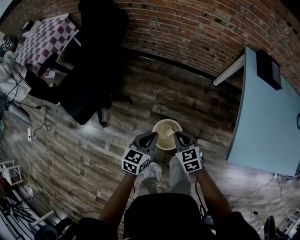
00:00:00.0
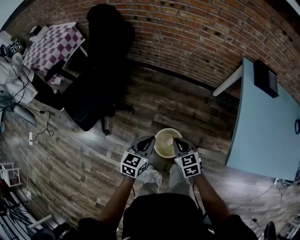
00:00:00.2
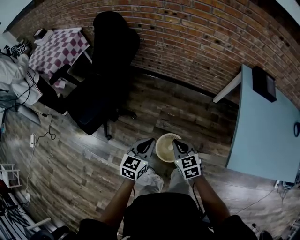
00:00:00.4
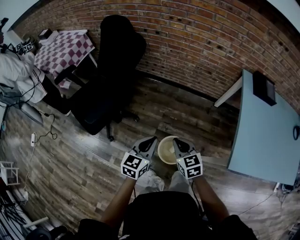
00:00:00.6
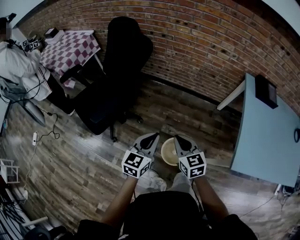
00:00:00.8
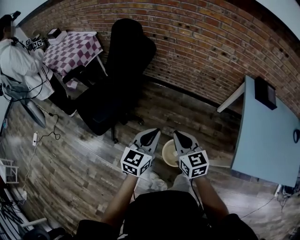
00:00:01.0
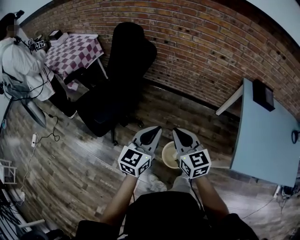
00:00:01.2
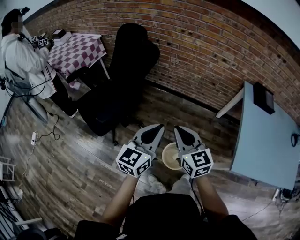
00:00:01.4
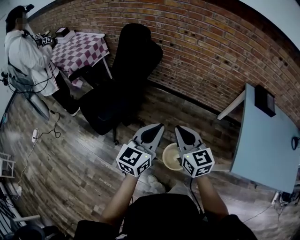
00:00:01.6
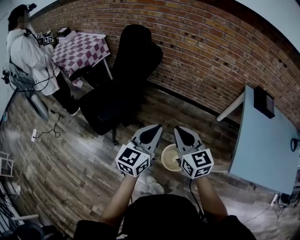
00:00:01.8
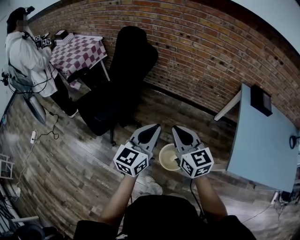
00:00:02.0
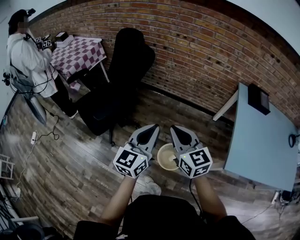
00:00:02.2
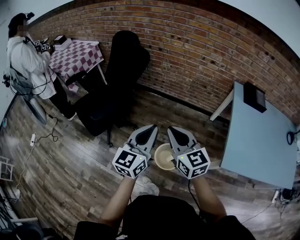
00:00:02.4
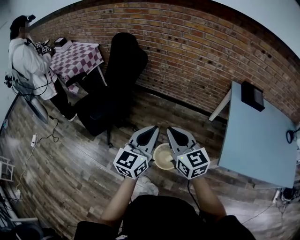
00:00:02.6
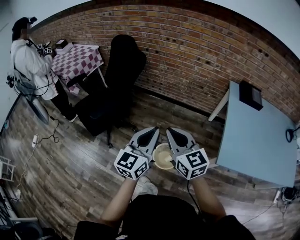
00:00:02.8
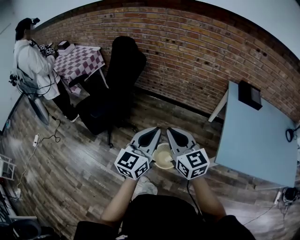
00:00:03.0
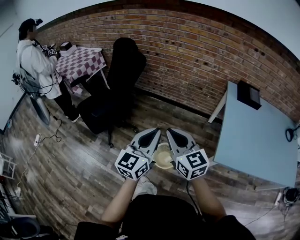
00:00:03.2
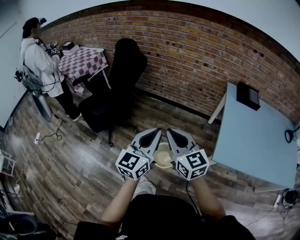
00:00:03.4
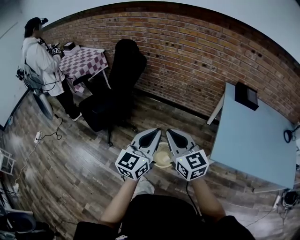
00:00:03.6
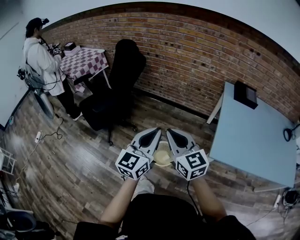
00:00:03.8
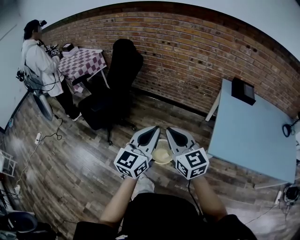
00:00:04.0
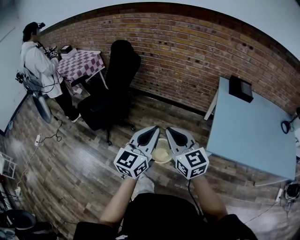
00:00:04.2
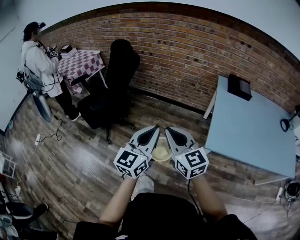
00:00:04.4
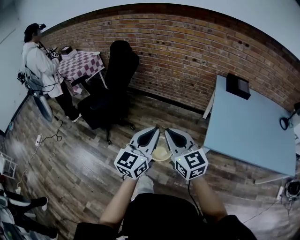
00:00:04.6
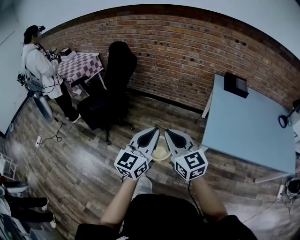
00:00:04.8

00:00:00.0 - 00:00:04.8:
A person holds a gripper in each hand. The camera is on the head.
00:00:00.0 - 00:00:01.6: Both grippers move upward and to the left, approximately 30 cm. The right gripper tilts its fingers some 30 degrees upward; the left gripper swivels about 30 degrees.
00:00:01.6 - 00:00:03.2: The right gripper travels backward, to the right and upward by some 20 cm; the left gripper travels backward and to the right by roughly 20 cm.
00:00:03.2 - 00:00:04.8: Both grippers move backward and to the right, about 15 cm.

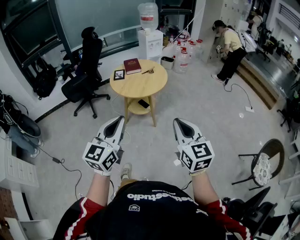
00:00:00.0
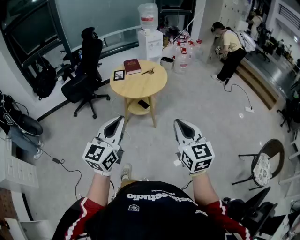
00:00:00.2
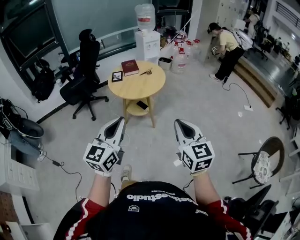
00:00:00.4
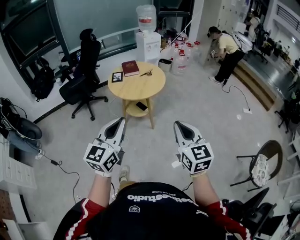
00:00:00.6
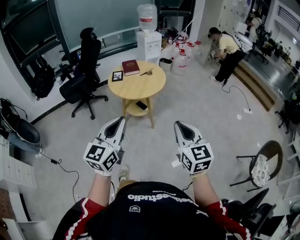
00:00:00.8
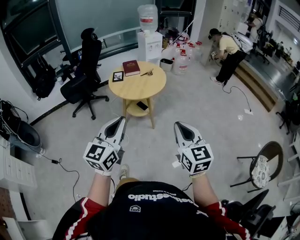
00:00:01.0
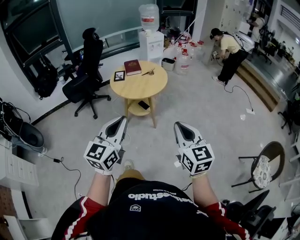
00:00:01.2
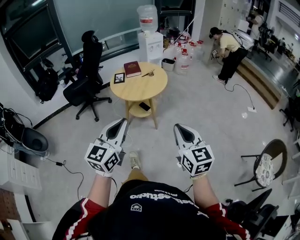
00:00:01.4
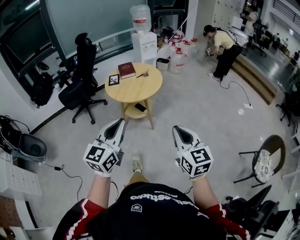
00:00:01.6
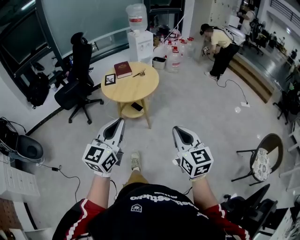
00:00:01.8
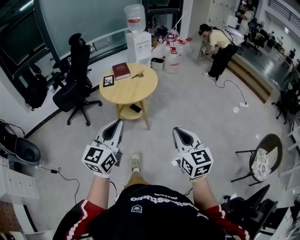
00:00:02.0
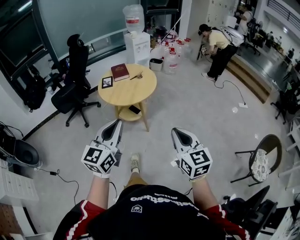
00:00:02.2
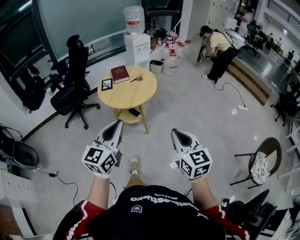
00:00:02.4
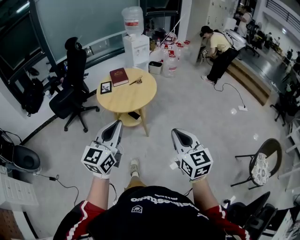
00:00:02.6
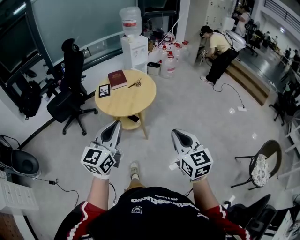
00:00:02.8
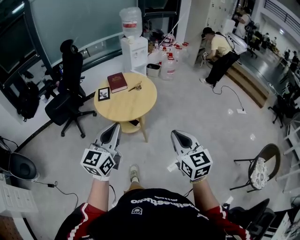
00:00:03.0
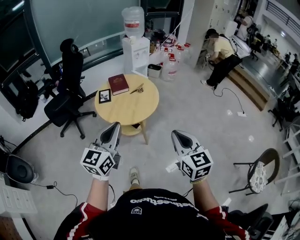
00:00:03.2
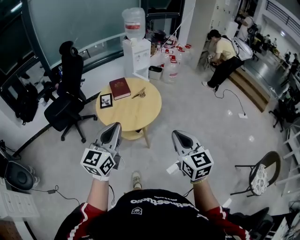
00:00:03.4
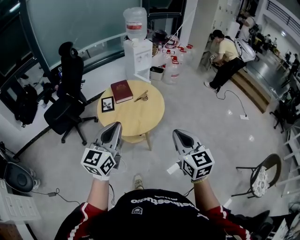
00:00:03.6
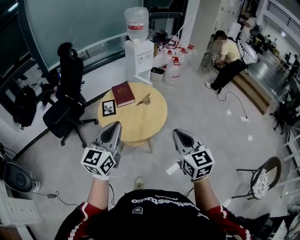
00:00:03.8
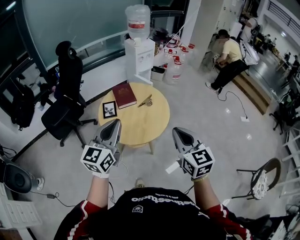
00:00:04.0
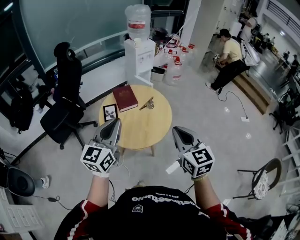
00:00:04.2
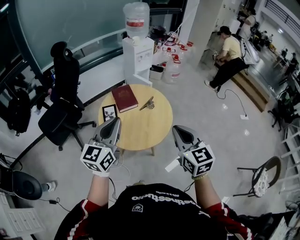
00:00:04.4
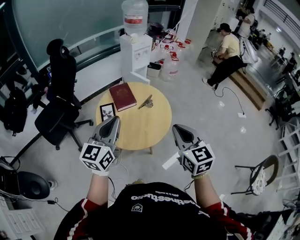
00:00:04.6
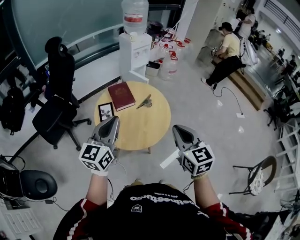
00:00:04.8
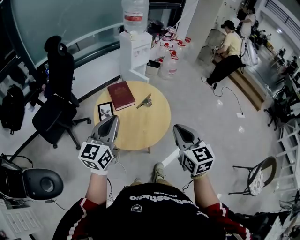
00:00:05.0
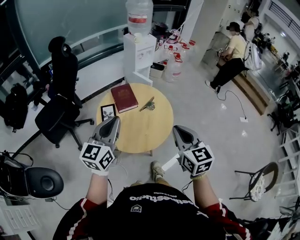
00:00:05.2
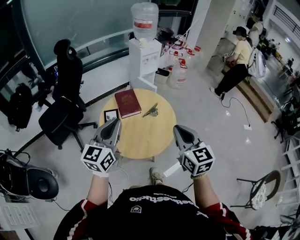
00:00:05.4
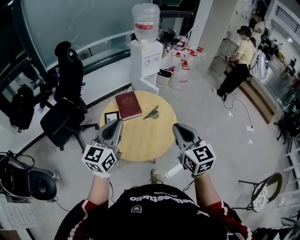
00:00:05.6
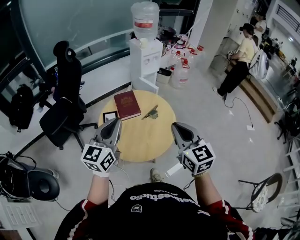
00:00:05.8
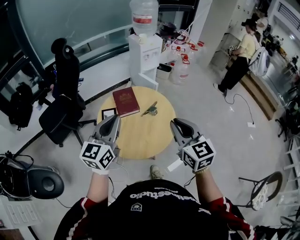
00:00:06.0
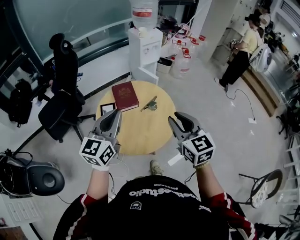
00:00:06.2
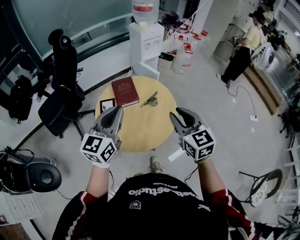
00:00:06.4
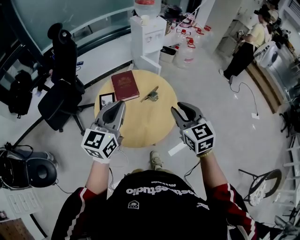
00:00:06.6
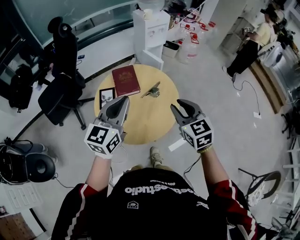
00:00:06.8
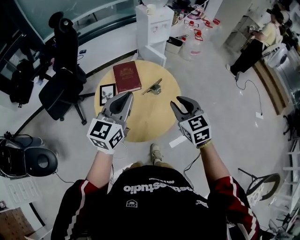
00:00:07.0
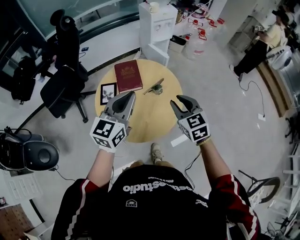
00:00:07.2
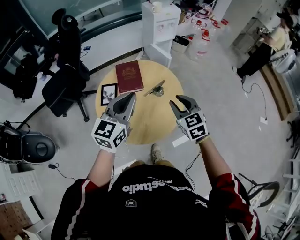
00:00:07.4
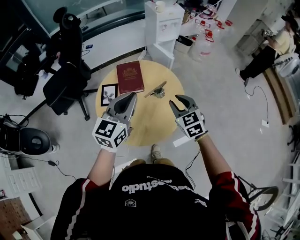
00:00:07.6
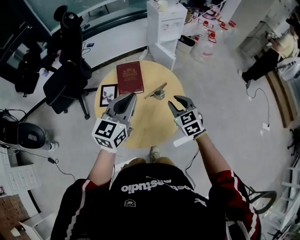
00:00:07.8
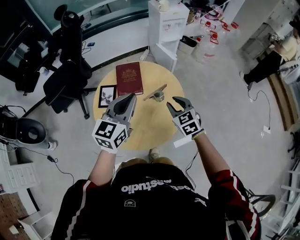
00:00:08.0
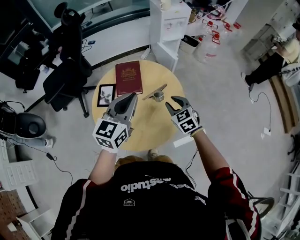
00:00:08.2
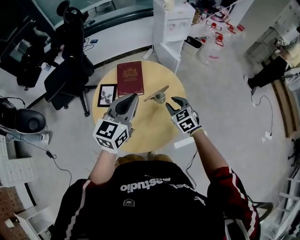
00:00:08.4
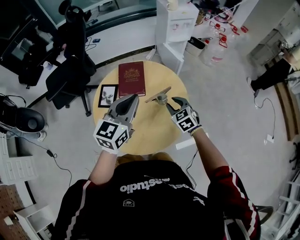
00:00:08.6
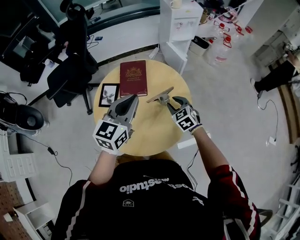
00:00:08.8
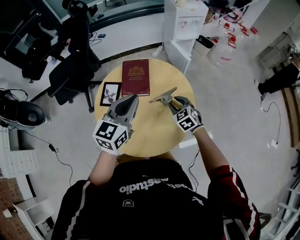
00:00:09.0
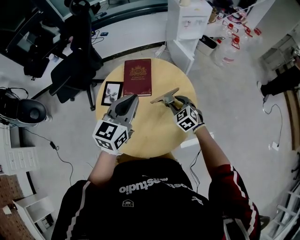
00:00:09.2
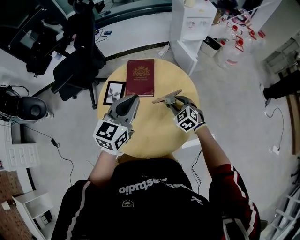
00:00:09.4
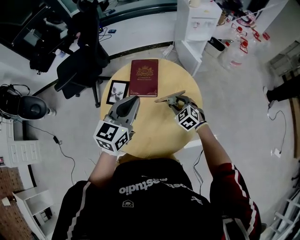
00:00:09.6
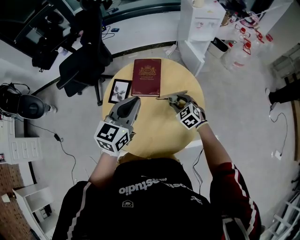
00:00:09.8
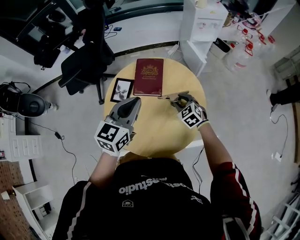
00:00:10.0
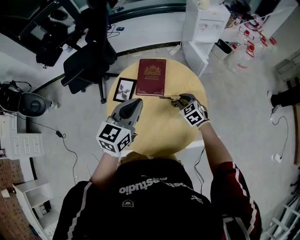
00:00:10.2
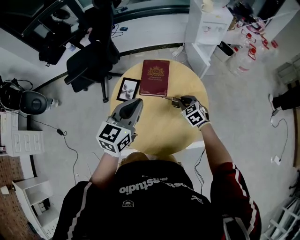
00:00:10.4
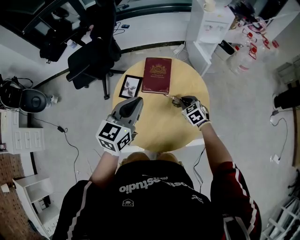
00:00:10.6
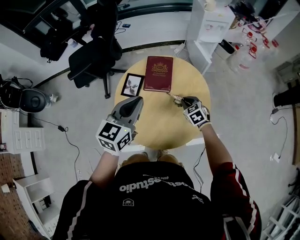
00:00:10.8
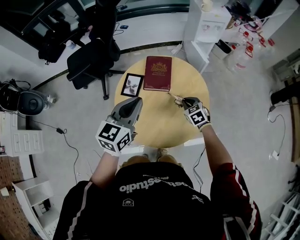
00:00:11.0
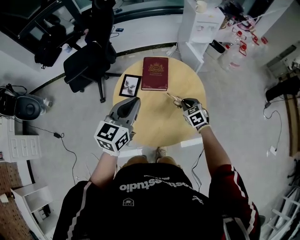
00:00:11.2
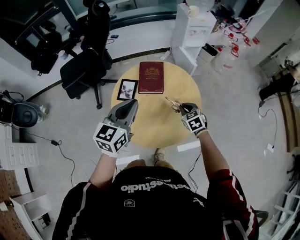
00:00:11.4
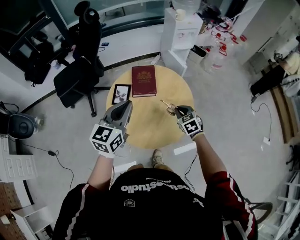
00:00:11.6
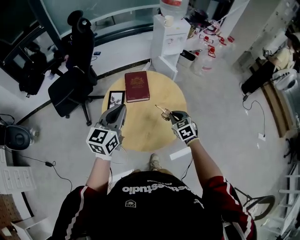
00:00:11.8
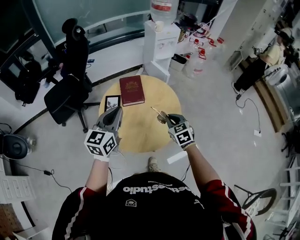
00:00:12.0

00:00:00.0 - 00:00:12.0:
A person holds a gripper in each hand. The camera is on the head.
00:00:00.0 - 00:00:01.6: The grippers move only a little.
00:00:01.6 - 00:00:03.0: The grippers both shift forward by approximately 15 cm.
00:00:03.0 - 00:00:04.4: Both grippers travel together forward and to the left, approximately 35 cm.
00:00:04.4 - 00:00:06.0: Both grippers move forward, roughly 10 cm.
00:00:06.0 - 00:00:07.6: The right gripper shifts about 25 cm downward and forward, and rotates some 20 degrees. The left gripper travels forward, to the right and downward by approximately 15 cm.
00:00:07.6 - 00:00:09.0: The left gripper goes about 10 cm downward and forward. Meanwhile the right gripper moves downward and forward, some 20 cm.
00:00:09.0 - 00:00:10.4: The left gripper shifts approximately 5 cm to the left; the right gripper changes place by about 5 cm, and closes.
00:00:10.4 - 00:00:12.0: The right gripper moves backward and upward, roughly 25 cm, and turns by some 30 degrees, while the left gripper is displaced backward, upward and to the left by roughly 15 cm.

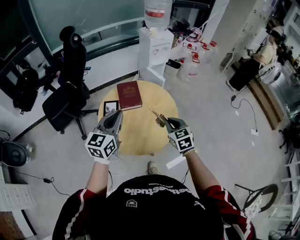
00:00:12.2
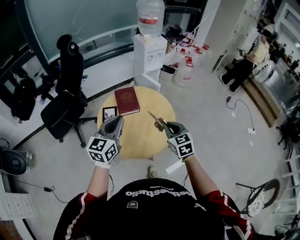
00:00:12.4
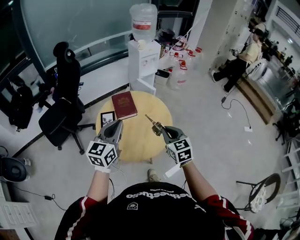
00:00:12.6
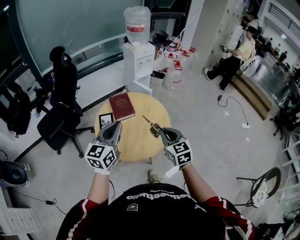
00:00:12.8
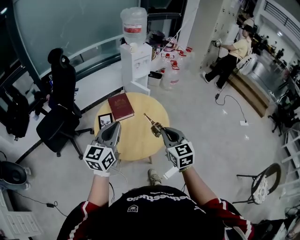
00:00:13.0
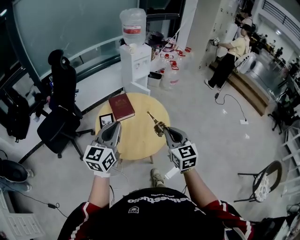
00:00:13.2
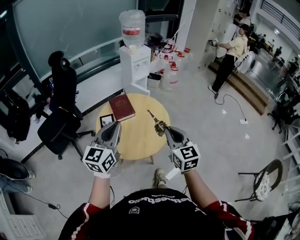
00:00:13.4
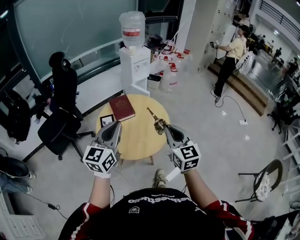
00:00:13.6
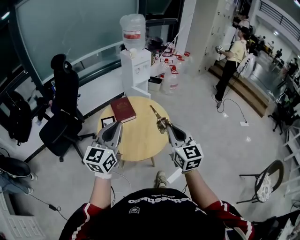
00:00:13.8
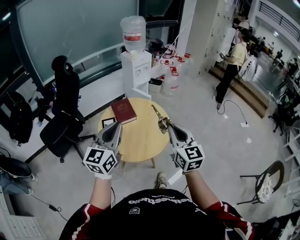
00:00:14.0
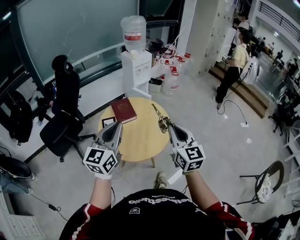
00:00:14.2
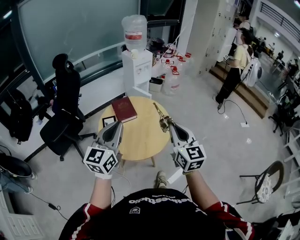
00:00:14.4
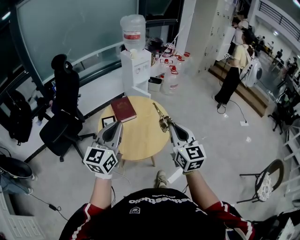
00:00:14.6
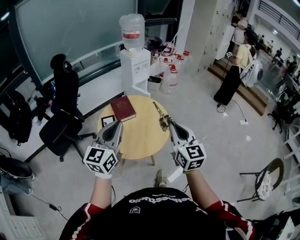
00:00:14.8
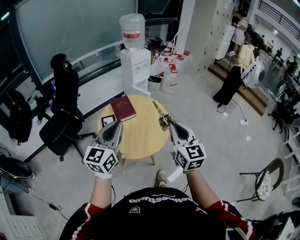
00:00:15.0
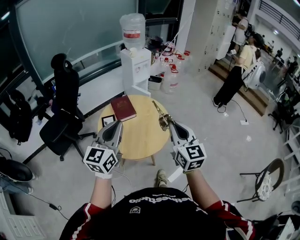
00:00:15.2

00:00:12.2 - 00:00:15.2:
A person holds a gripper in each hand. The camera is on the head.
00:00:12.2 - 00:00:13.8: The right gripper heads upward and backward, covering about 25 cm, and turns by approximately 30 degrees; the left gripper travels backward and upward by roughly 15 cm.
00:00:13.8 - 00:00:15.2: The grippers stay close to where they were, moving slightly.

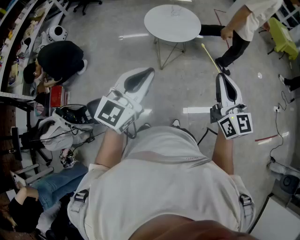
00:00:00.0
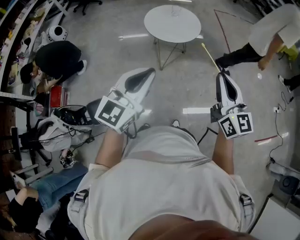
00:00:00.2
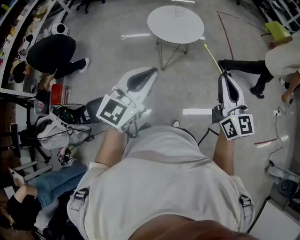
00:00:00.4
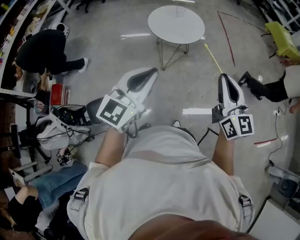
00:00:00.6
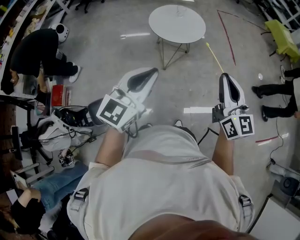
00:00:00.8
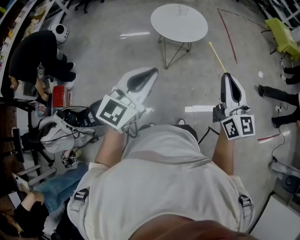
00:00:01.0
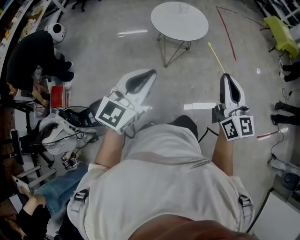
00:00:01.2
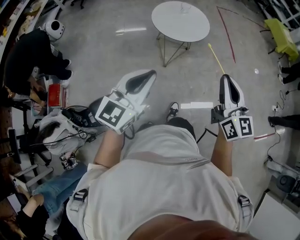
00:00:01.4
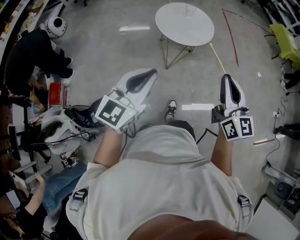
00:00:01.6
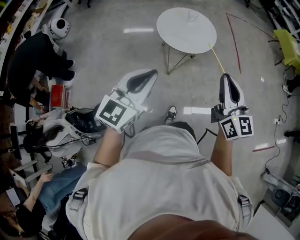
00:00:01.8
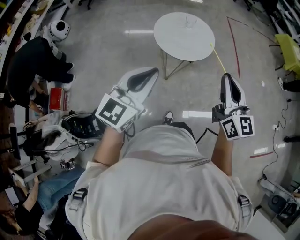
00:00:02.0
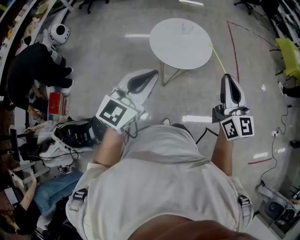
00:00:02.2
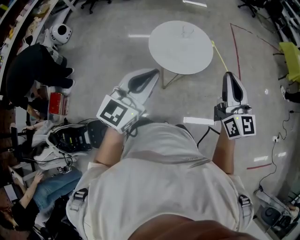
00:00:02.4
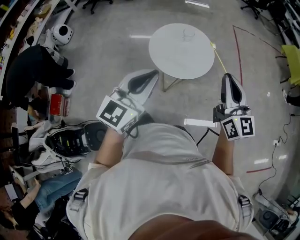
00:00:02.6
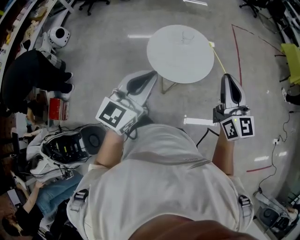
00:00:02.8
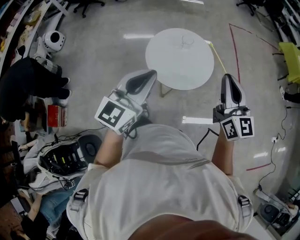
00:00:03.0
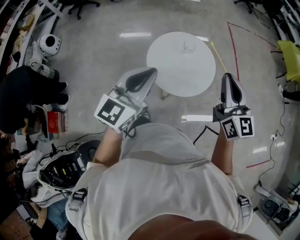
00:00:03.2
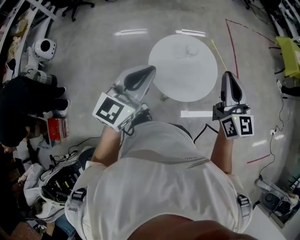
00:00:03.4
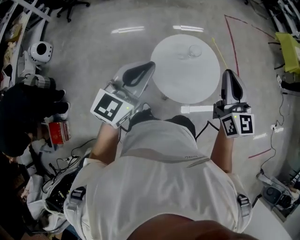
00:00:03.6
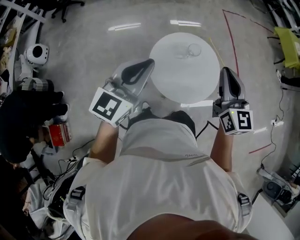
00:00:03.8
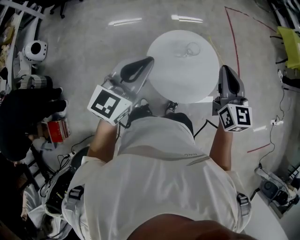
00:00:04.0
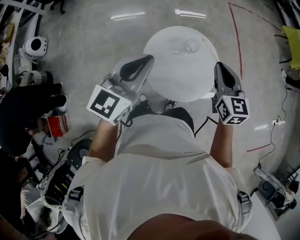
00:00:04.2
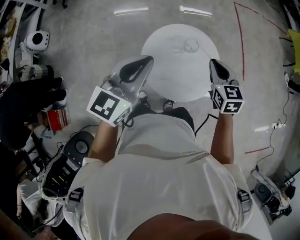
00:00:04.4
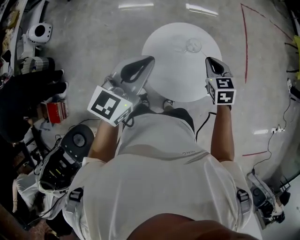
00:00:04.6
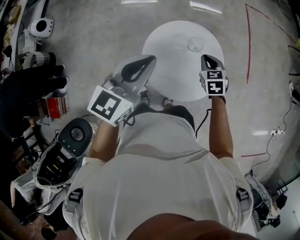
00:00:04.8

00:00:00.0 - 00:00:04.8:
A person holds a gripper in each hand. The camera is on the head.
00:00:00.0 - 00:00:01.6: The grippers both shift to the left and forward by about 10 cm.
00:00:01.6 - 00:00:03.2: The two grippers travel together, forward, roughly 50 cm.
00:00:03.2 - 00:00:04.8: The right gripper is displaced downward and forward by roughly 40 cm, and angles its fingers downward, by roughly 50 degrees. Meanwhile the left gripper is displaced forward by approximately 25 cm.
